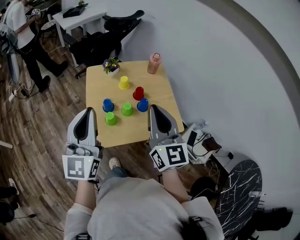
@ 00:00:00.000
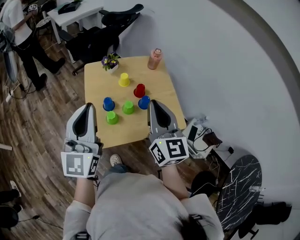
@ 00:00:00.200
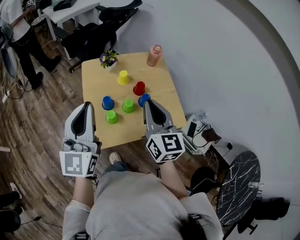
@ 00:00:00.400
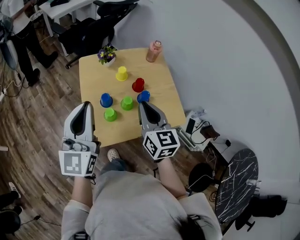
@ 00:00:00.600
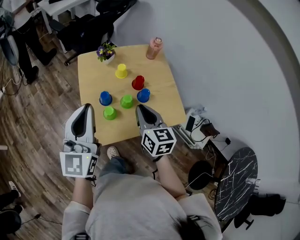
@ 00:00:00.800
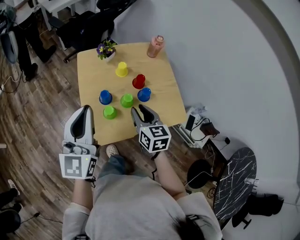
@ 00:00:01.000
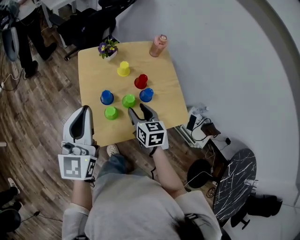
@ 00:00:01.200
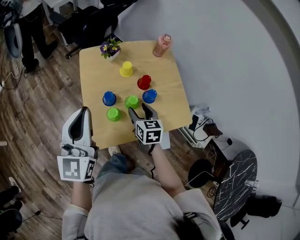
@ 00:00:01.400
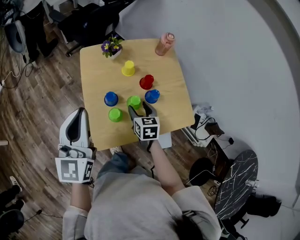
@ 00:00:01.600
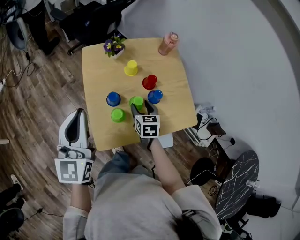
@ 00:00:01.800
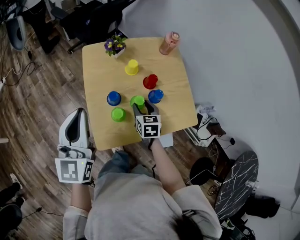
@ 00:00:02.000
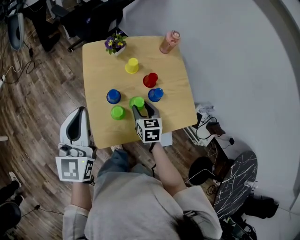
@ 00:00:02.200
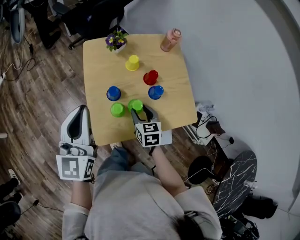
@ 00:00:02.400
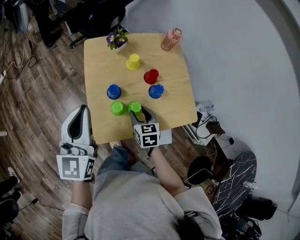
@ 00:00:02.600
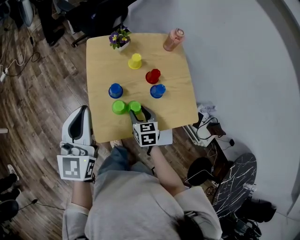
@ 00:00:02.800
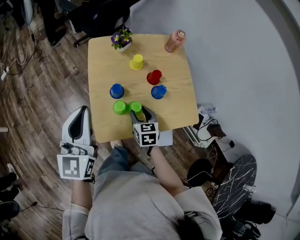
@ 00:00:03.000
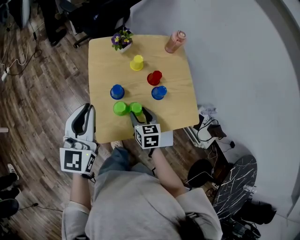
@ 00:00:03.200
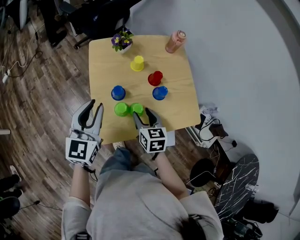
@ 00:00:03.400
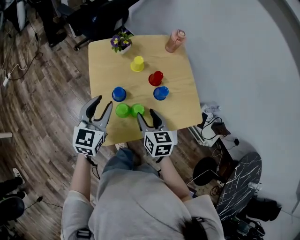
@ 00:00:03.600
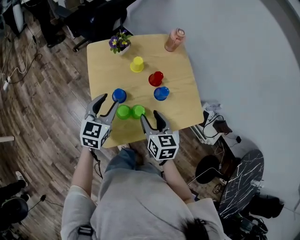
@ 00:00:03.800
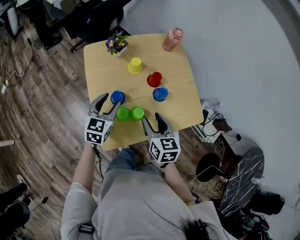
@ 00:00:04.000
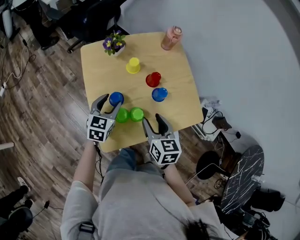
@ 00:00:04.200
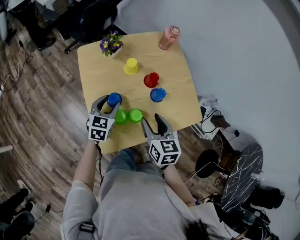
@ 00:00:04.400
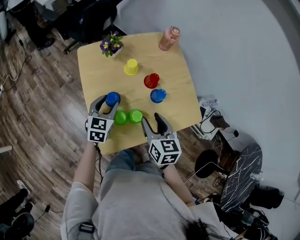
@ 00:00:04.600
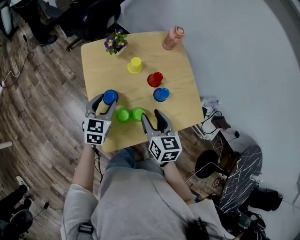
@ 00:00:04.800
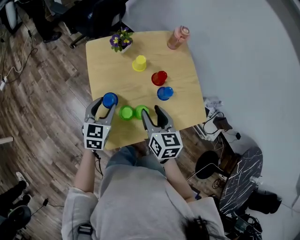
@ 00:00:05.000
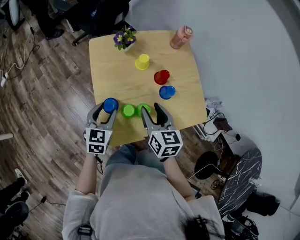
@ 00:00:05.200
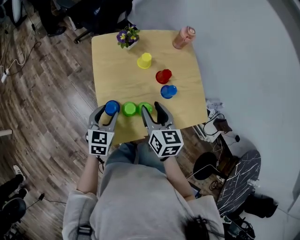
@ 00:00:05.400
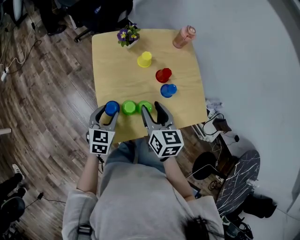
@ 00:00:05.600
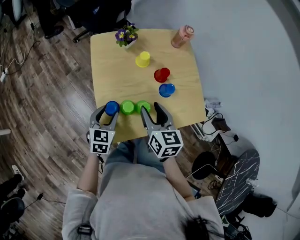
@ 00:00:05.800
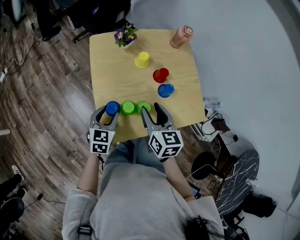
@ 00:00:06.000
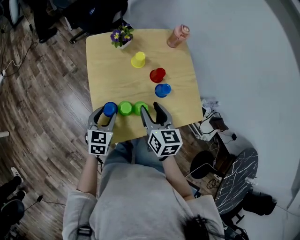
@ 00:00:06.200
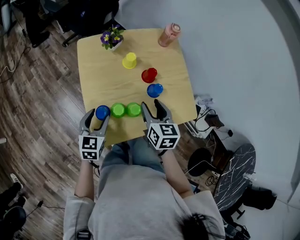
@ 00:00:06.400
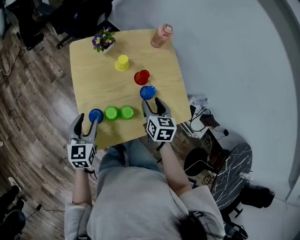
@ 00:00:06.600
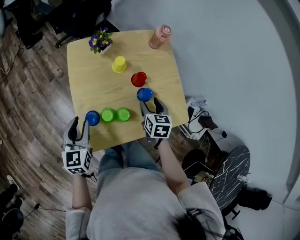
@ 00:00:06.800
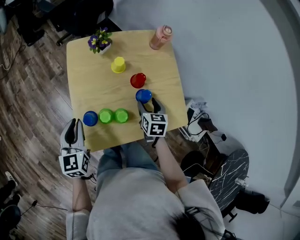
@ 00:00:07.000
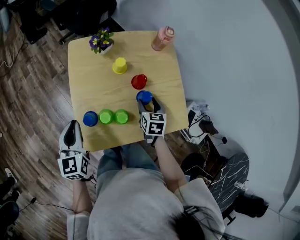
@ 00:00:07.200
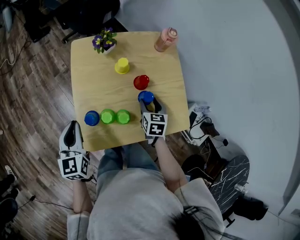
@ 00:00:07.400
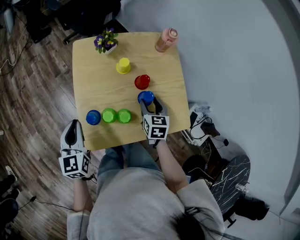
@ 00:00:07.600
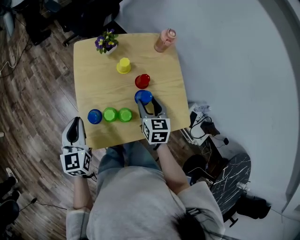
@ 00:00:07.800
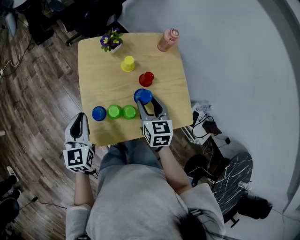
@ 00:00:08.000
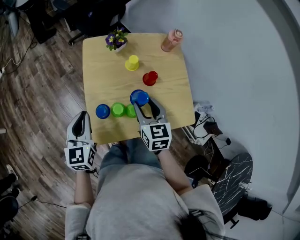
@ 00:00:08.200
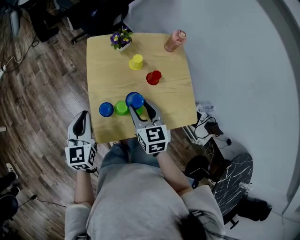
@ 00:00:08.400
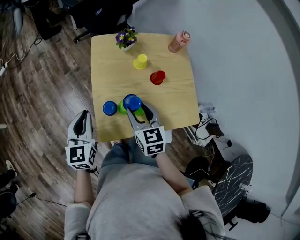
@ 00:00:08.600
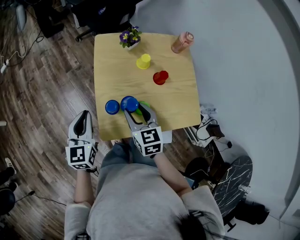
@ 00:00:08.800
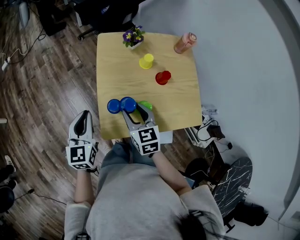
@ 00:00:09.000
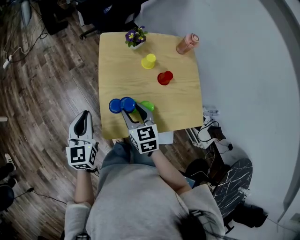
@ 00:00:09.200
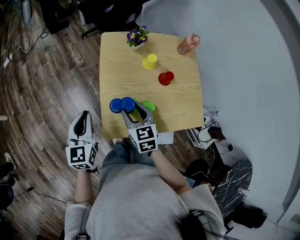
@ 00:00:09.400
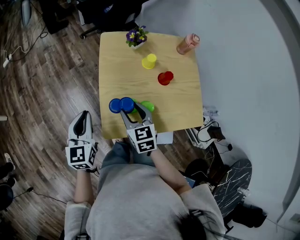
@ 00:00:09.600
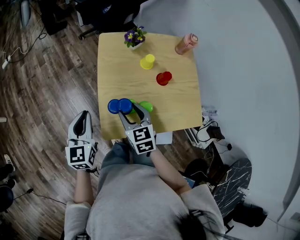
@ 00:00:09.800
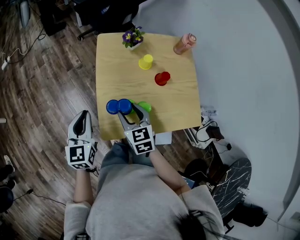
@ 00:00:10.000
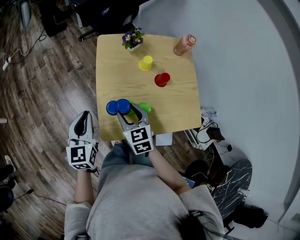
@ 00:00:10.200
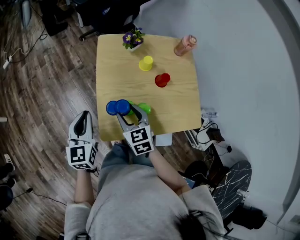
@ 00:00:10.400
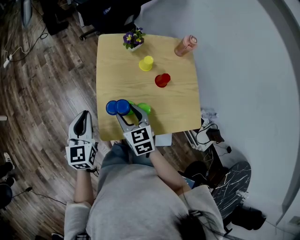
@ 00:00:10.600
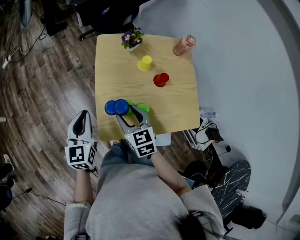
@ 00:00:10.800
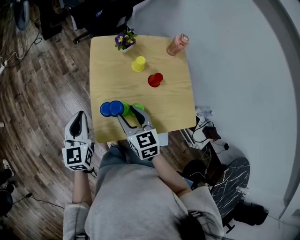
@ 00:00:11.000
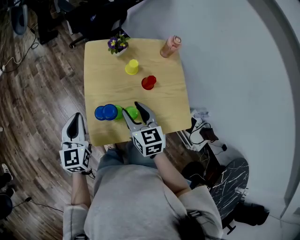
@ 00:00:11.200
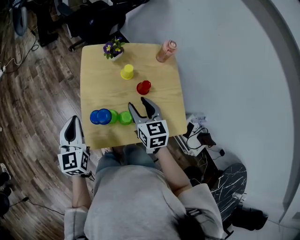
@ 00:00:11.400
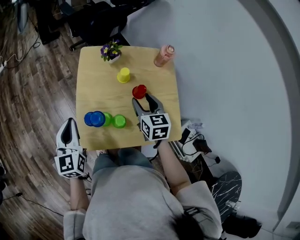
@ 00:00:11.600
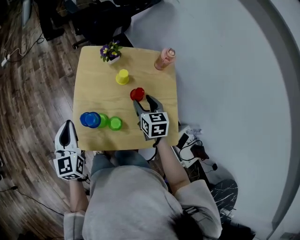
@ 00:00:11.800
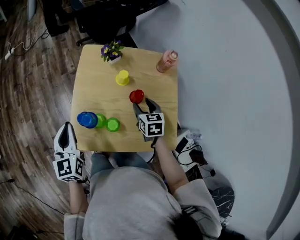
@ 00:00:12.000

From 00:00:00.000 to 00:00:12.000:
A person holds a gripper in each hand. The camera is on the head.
From 00:00:00.000 to 00:00:01.600: The left gripper is displaced downward, forward and to the left by about 15 cm, while the right gripper shifts roughly 35 cm downward and forward, angles its fingers downward, by approximately 50 degrees, and opens its fingers.
From 00:00:01.600 to 00:00:03.000: The right gripper changes place by some 5 cm.
From 00:00:03.000 to 00:00:04.400: The left gripper is displaced downward and forward by approximately 25 cm, angles its fingers downward, by about 30 degrees, and opens its fingers; the right gripper is displaced upward by roughly 10 cm.
From 00:00:04.400 to 00:00:06.000: The left gripper is displaced backward by approximately 10 cm; the right gripper moves roughly 5 cm.
From 00:00:06.000 to 00:00:07.600: The right gripper heads to the right, downward and forward, covering about 15 cm. Meanwhile the left gripper travels upward and to the left by some 10 cm, rotates some 30 degrees, and closes its fingers.
From 00:00:07.600 to 00:00:09.000: The left gripper heads to the left, covering approximately 5 cm. The right gripper shifts some 20 cm to the left, and turns by roughly 20 degrees.
From 00:00:09.000 to 00:00:10.400: The grippers move only a little.
From 00:00:10.400 to 00:00:12.000: The left gripper travels to the right by about 5 cm. The right gripper moves to the right, approximately 25 cm.

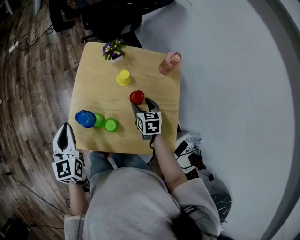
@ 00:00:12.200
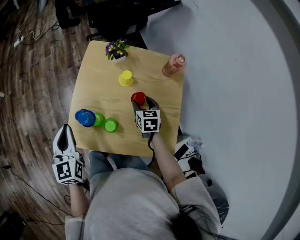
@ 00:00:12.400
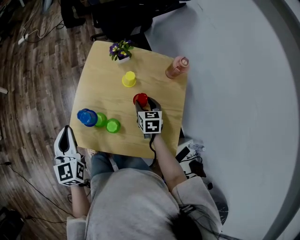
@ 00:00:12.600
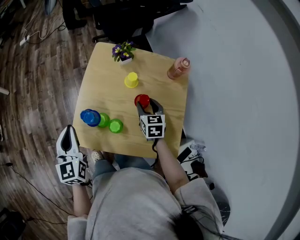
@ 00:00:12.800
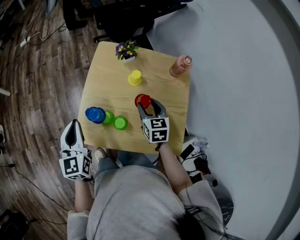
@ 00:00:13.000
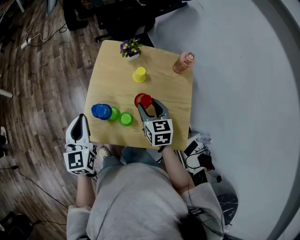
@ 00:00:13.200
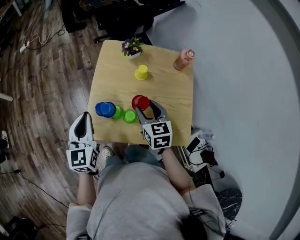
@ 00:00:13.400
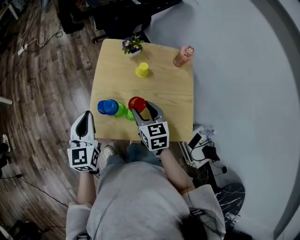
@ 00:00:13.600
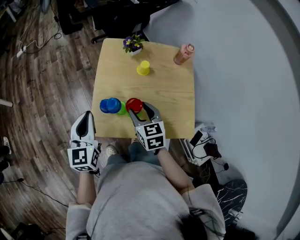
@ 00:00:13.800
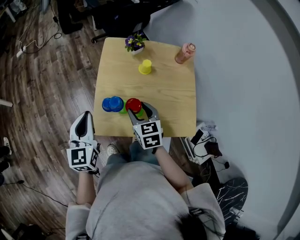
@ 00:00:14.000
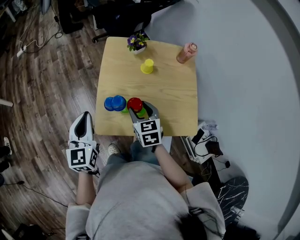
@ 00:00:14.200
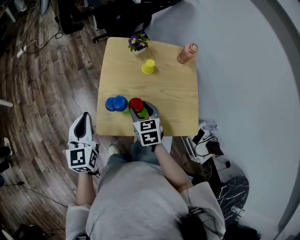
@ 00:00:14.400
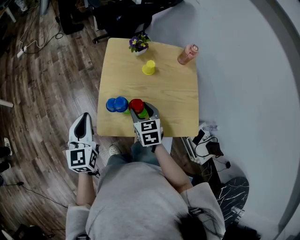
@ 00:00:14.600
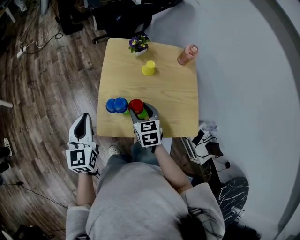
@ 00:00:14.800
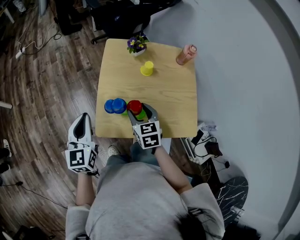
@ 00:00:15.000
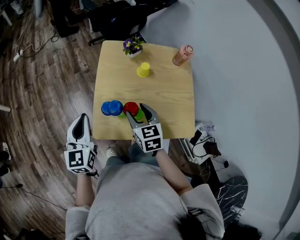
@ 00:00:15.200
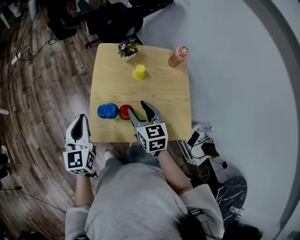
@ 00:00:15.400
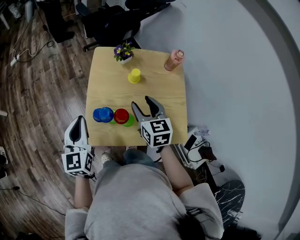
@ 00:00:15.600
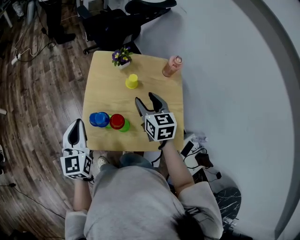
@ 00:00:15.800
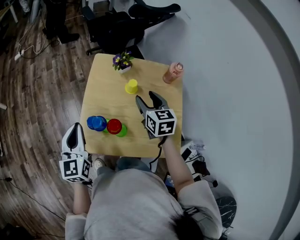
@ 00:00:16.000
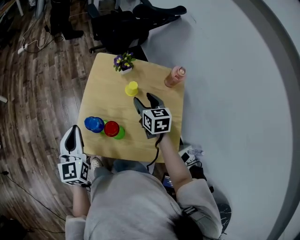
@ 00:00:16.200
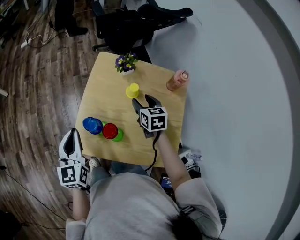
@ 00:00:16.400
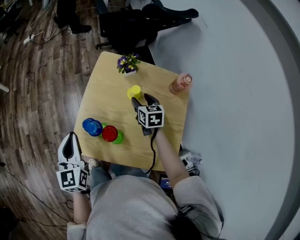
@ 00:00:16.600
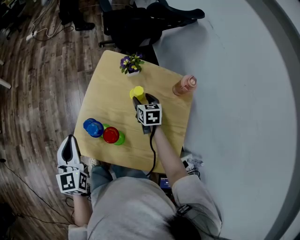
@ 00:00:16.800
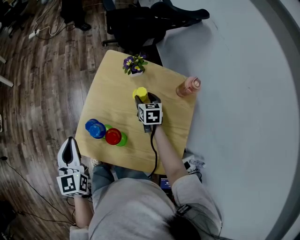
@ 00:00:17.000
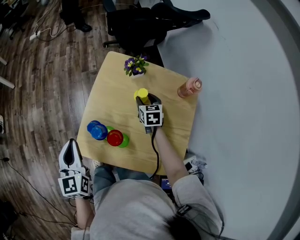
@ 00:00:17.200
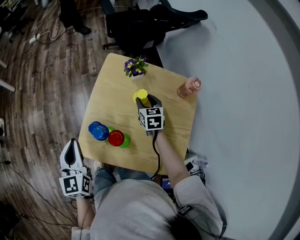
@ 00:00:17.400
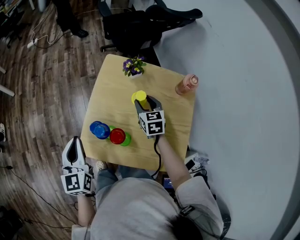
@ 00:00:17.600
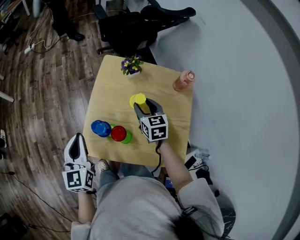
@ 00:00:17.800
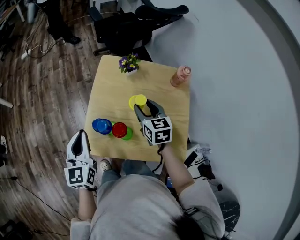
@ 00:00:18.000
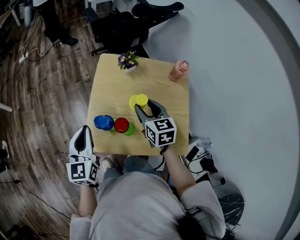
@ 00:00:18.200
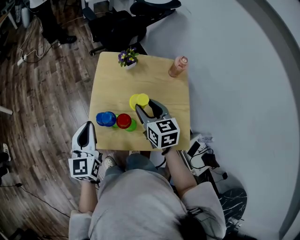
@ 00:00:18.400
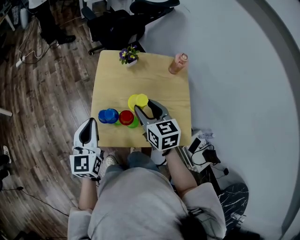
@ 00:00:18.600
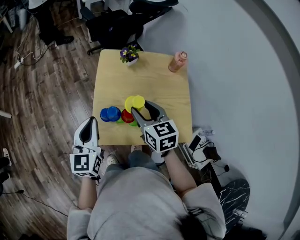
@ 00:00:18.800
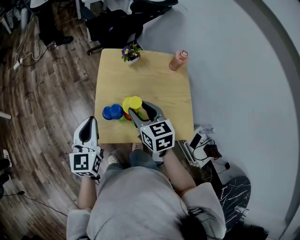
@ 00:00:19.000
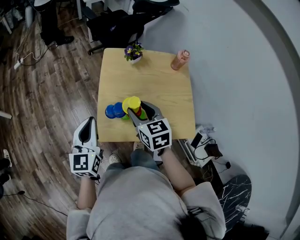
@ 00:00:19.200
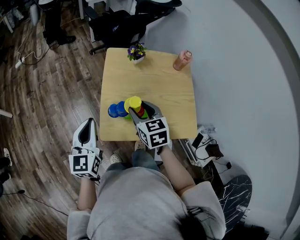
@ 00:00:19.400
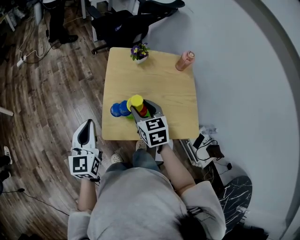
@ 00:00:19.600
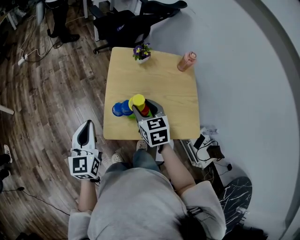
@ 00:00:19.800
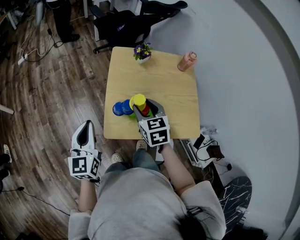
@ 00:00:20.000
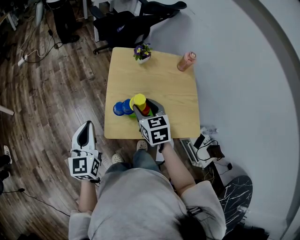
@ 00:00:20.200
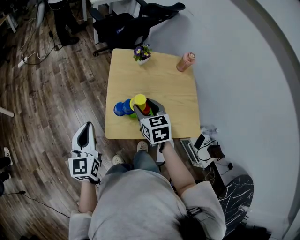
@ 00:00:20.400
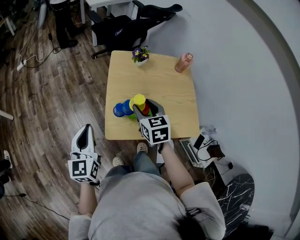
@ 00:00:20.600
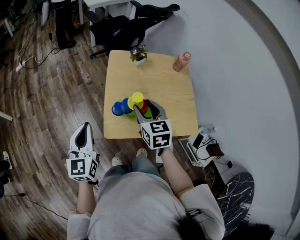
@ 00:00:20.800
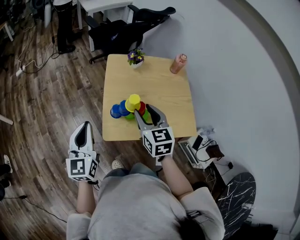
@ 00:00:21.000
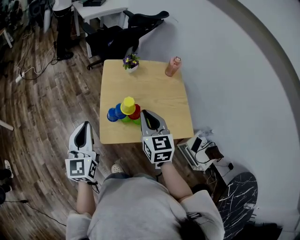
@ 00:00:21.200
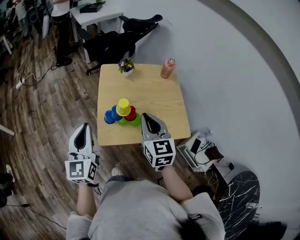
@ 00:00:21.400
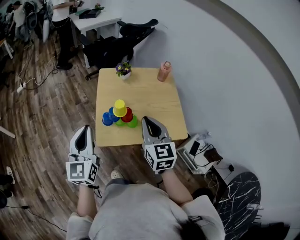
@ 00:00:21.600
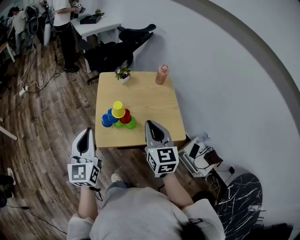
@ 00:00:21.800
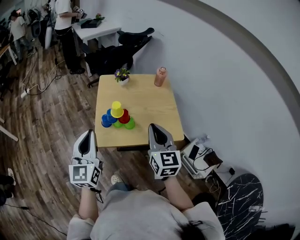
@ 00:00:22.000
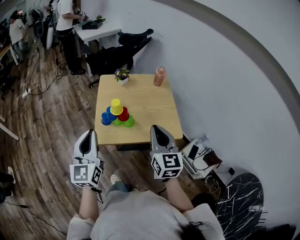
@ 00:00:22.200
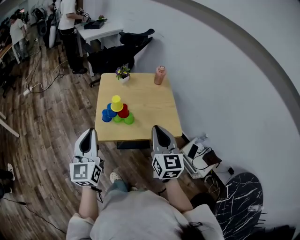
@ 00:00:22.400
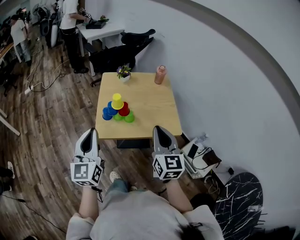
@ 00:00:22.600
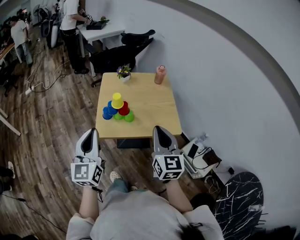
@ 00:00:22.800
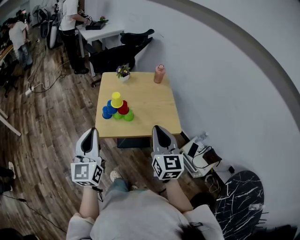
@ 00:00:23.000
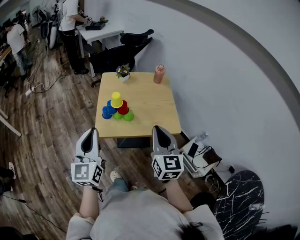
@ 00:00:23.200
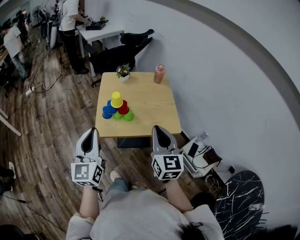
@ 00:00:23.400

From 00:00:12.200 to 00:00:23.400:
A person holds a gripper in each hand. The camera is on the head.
From 00:00:12.200 to 00:00:13.800: The right gripper shifts approximately 20 cm to the left, backward and upward.
From 00:00:13.800 to 00:00:15.400: The grippers move only a little.
From 00:00:15.400 to 00:00:17.000: The left gripper changes its angle by about 20 degrees. The right gripper heads forward, downward and to the right, covering roughly 25 cm.
From 00:00:17.000 to 00:00:18.600: The left gripper changes its angle by about 30 degrees. The right gripper shifts roughly 25 cm upward, backward and to the left.
From 00:00:18.600 to 00:00:20.200: The grippers both shift to the left by some 10 cm.
From 00:00:20.200 to 00:00:21.800: The left gripper moves upward, to the right and backward, roughly 15 cm. Meanwhile the right gripper heads backward, upward and to the right, covering about 20 cm, rotates approximately 30 degrees, and closes its fingers.
From 00:00:21.800 to 00:00:23.400: The left gripper goes approximately 10 cm backward. The right gripper is displaced backward and to the right by roughly 15 cm.
